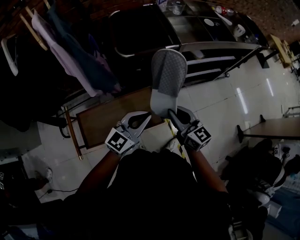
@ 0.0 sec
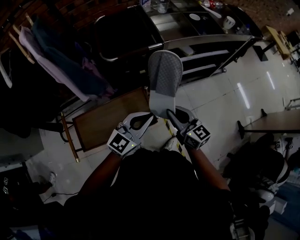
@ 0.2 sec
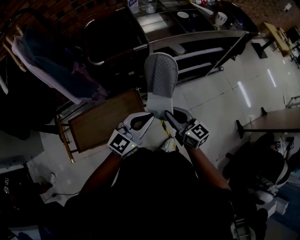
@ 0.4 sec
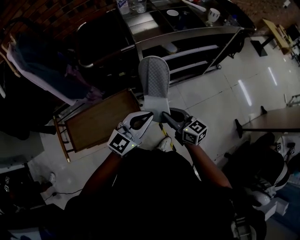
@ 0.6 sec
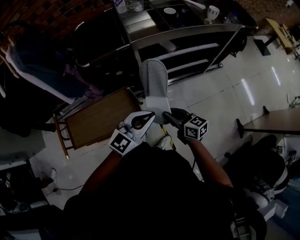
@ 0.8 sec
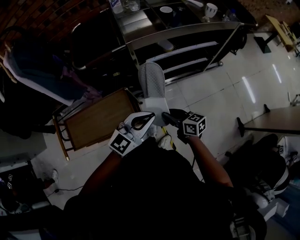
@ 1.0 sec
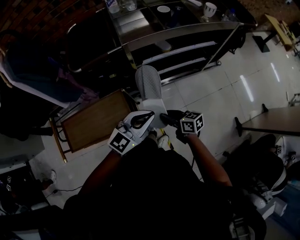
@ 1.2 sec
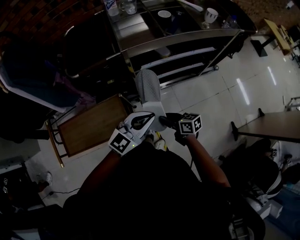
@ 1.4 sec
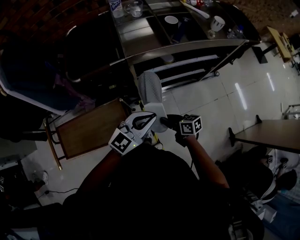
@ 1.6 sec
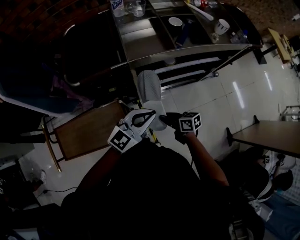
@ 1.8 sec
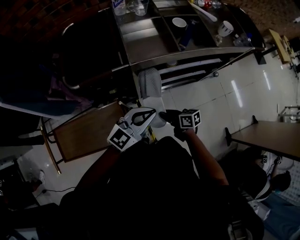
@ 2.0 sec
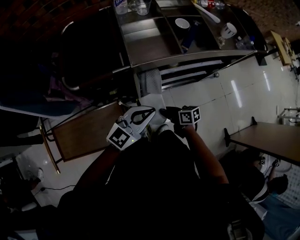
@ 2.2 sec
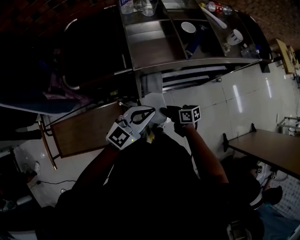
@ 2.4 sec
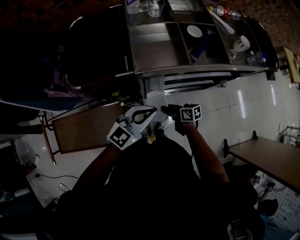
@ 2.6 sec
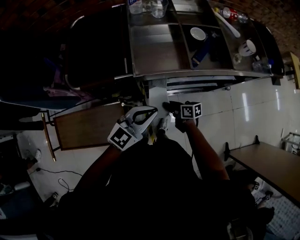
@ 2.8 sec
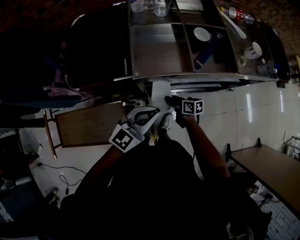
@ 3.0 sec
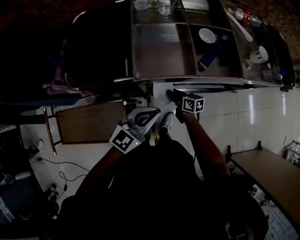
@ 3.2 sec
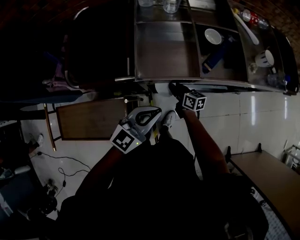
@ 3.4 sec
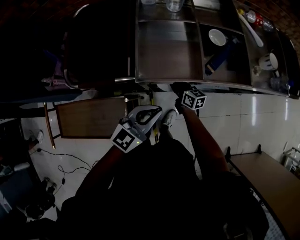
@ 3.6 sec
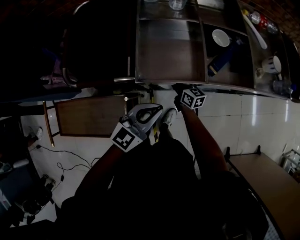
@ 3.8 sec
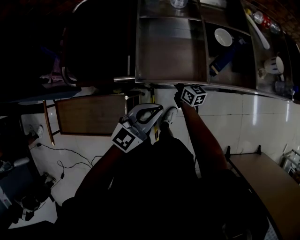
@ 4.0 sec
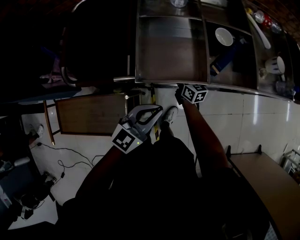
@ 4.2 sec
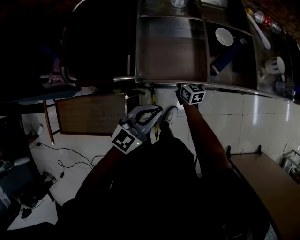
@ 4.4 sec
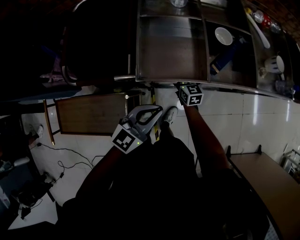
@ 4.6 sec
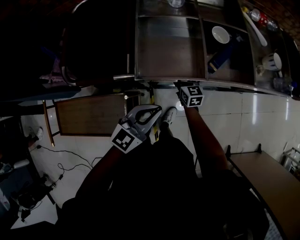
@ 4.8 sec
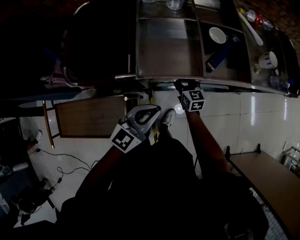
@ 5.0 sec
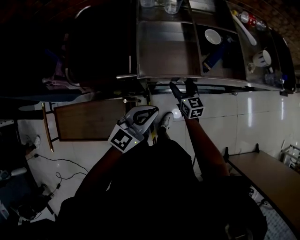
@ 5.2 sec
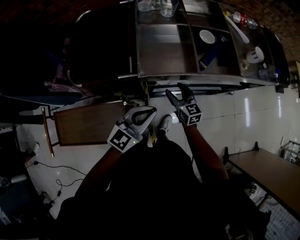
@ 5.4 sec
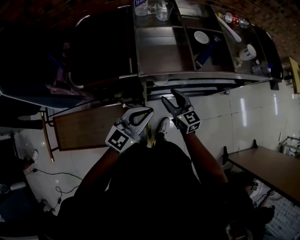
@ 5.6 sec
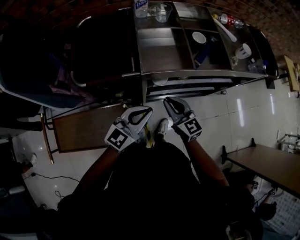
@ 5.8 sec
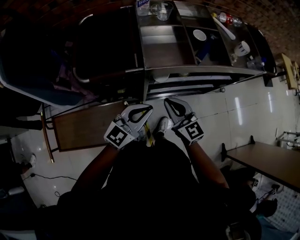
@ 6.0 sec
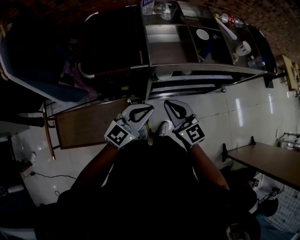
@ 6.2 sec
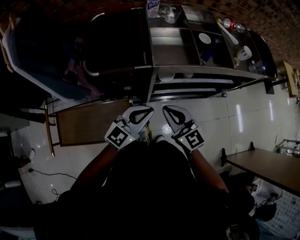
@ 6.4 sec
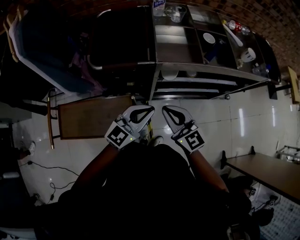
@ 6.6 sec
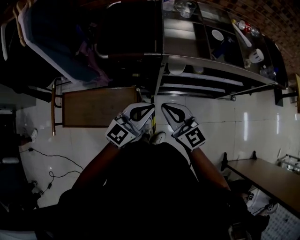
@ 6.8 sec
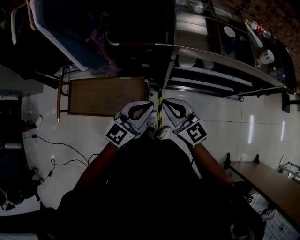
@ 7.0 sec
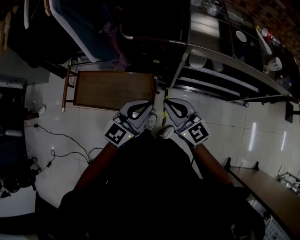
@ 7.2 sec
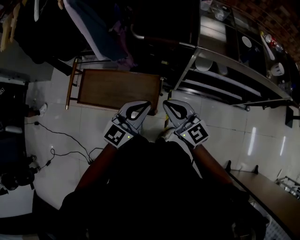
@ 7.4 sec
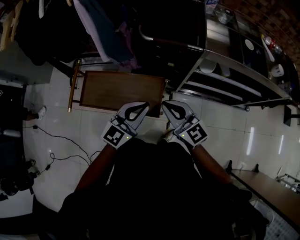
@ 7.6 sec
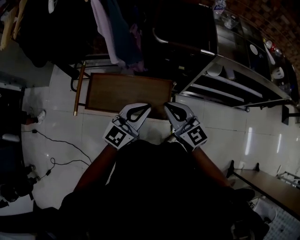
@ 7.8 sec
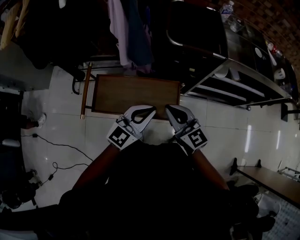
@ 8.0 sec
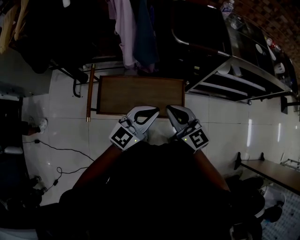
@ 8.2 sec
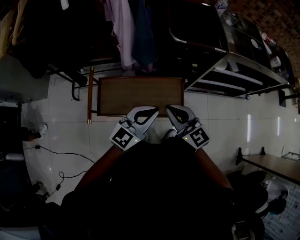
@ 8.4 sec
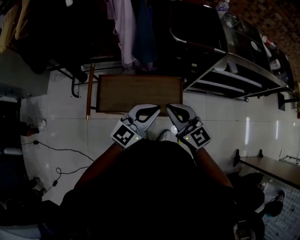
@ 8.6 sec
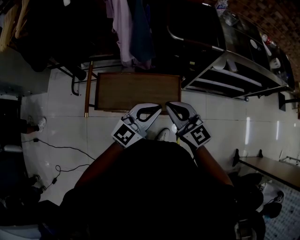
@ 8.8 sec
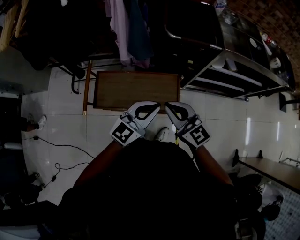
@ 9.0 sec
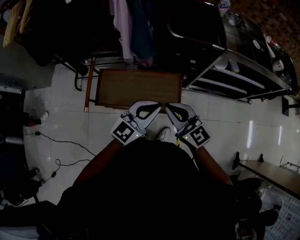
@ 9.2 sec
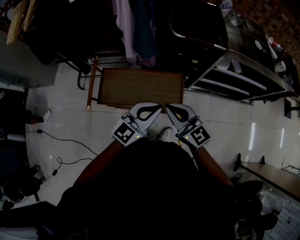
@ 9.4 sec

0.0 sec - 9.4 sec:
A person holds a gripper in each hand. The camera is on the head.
0.0 sec - 1.6 sec: The left gripper shifts approximately 30 cm to the right. The right gripper travels to the right and downward by approximately 30 cm, and swivels about 40 degrees.
1.6 sec - 3.2 sec: The left gripper is displaced forward by some 15 cm. Meanwhile the right gripper goes approximately 25 cm forward.
3.2 sec - 4.8 sec: The right gripper shifts some 10 cm forward, rotates approximately 40 degrees, and opens its fingers.
4.8 sec - 6.2 sec: The right gripper goes about 35 cm backward and upward, rotates roughly 20 degrees, and closes its fingers, while the left gripper is displaced backward, to the left and upward by about 15 cm.
6.2 sec - 7.8 sec: The grippers both shift to the left and backward by approximately 30 cm. The left gripper swivels about 20 degrees.
7.8 sec - 9.4 sec: The left gripper travels backward by some 5 cm. Meanwhile the right gripper goes about 10 cm to the left and backward.

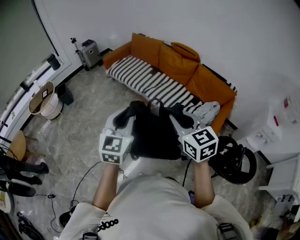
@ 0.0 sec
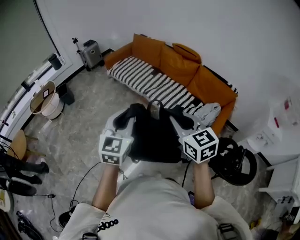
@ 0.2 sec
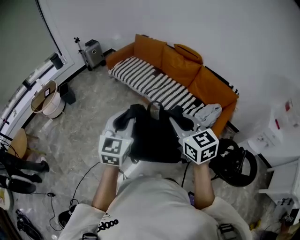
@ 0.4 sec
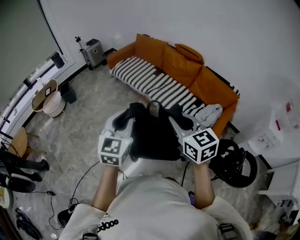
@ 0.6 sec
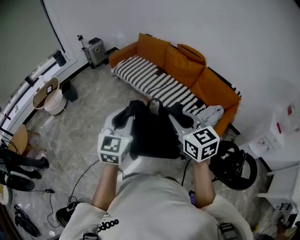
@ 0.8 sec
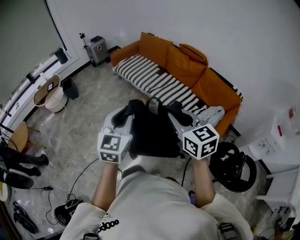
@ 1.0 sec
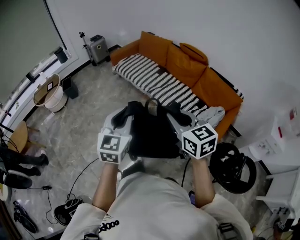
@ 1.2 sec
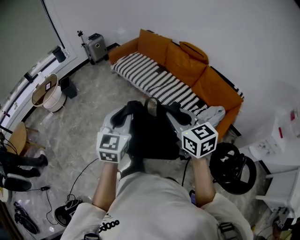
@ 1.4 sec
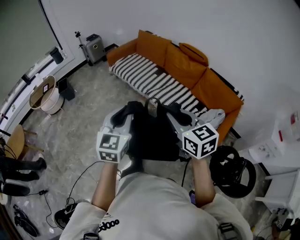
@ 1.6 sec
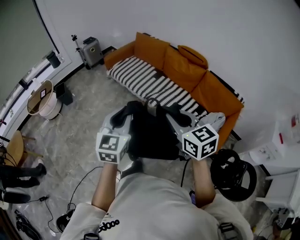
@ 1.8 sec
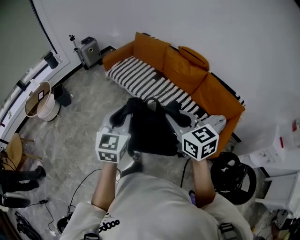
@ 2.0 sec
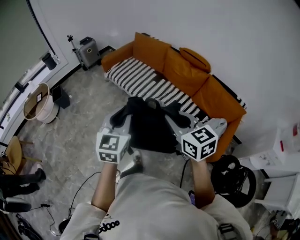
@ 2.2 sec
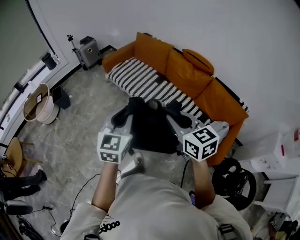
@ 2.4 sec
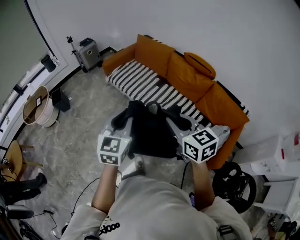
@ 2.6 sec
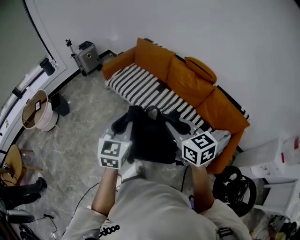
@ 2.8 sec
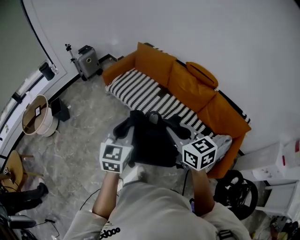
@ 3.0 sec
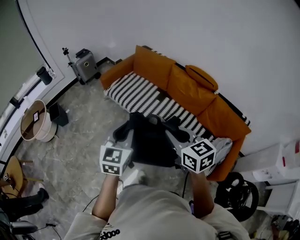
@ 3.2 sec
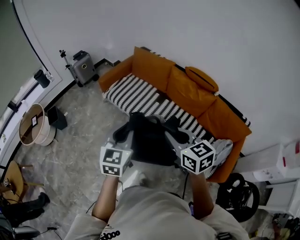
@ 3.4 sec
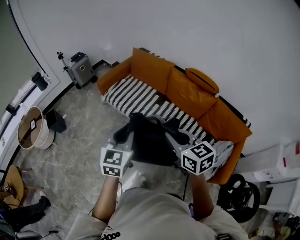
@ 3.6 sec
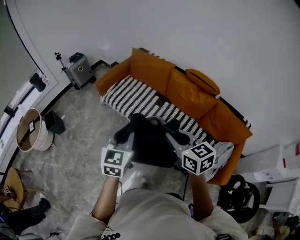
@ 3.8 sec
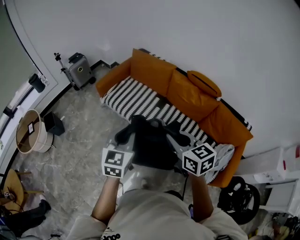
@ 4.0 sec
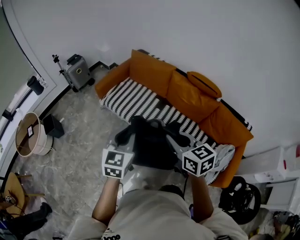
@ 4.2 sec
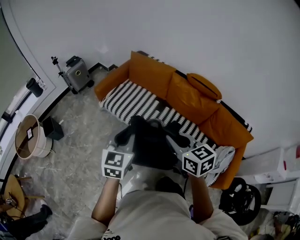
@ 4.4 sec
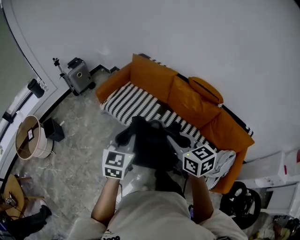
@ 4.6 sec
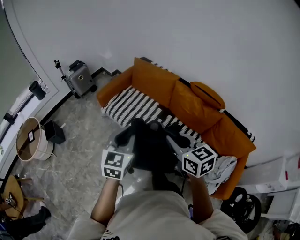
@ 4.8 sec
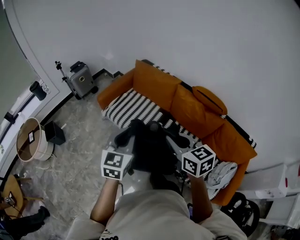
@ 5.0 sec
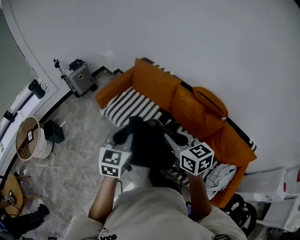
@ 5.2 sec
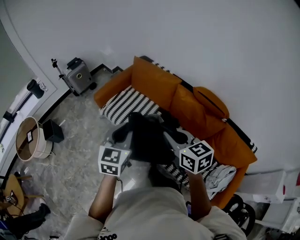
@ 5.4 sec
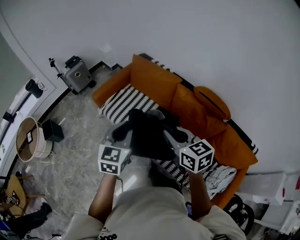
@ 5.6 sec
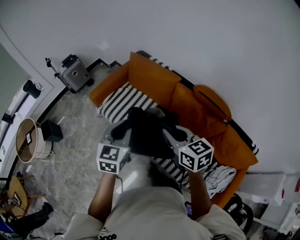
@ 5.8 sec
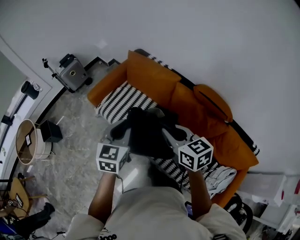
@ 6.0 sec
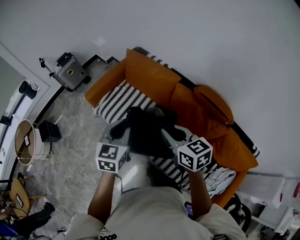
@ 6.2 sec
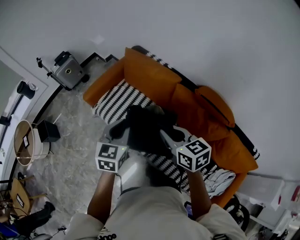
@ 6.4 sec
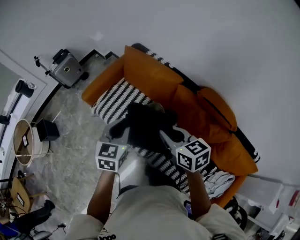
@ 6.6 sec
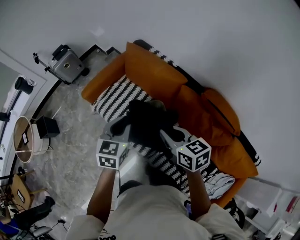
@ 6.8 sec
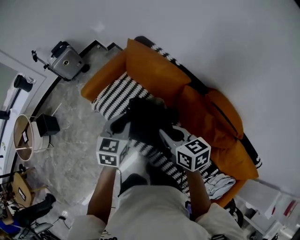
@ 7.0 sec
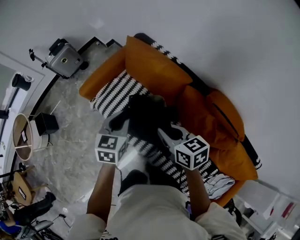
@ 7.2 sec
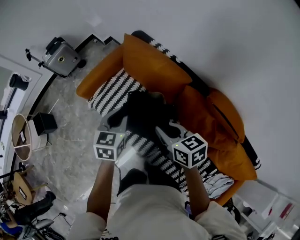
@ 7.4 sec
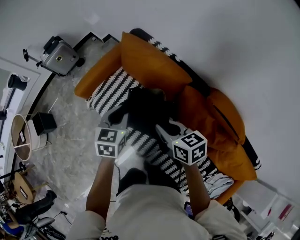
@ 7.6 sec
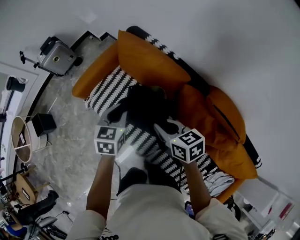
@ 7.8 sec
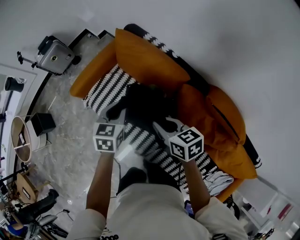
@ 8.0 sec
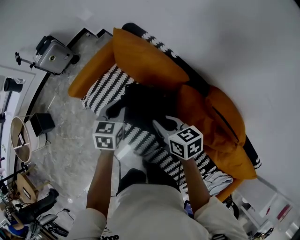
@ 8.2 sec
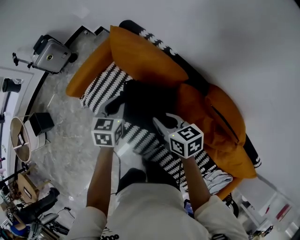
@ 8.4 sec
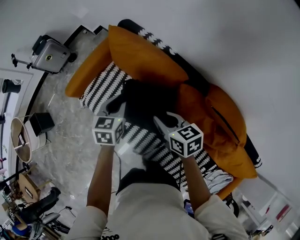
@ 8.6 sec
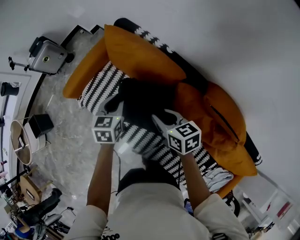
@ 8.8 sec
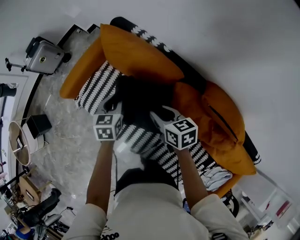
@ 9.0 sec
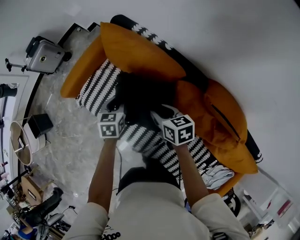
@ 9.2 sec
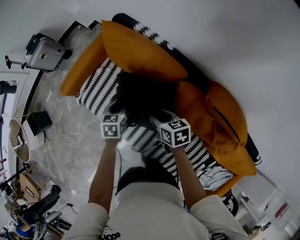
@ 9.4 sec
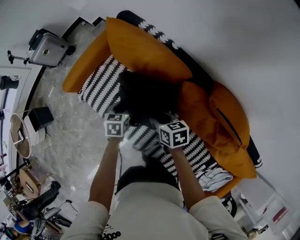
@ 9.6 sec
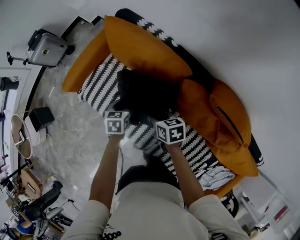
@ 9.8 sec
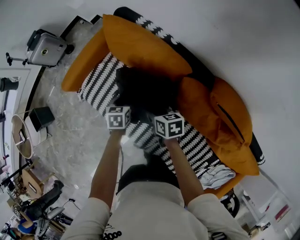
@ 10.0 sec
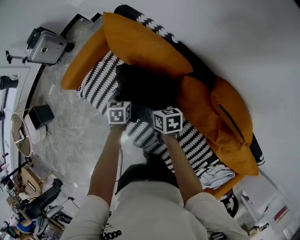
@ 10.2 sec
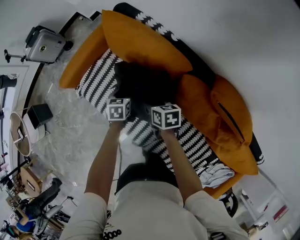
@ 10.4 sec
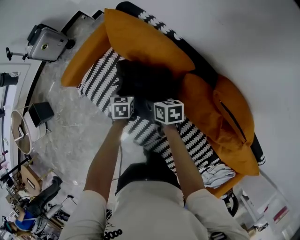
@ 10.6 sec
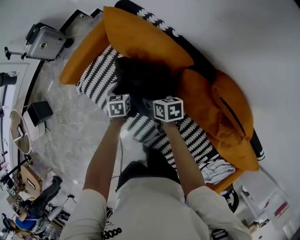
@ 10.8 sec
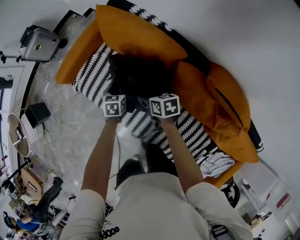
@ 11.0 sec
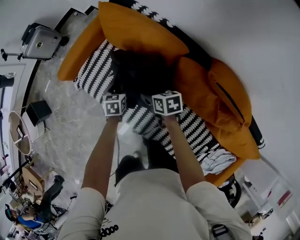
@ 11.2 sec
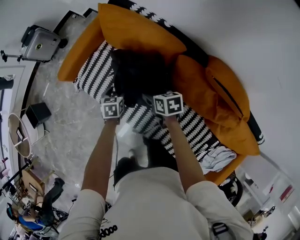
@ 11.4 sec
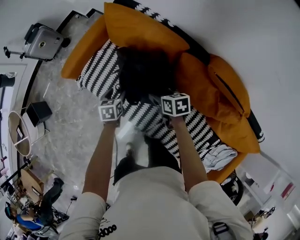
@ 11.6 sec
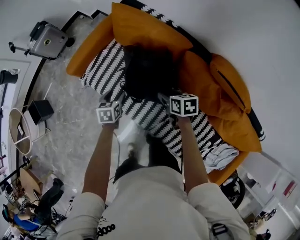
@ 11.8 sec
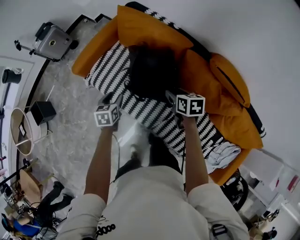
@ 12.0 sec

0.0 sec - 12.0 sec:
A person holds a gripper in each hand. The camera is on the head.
0.0 sec - 1.6 sec: Both grippers move forward, about 10 cm.
1.6 sec - 3.0 sec: Both grippers move forward, roughly 30 cm.
3.0 sec - 4.4 sec: Both grippers move forward, some 15 cm.
4.4 sec - 6.0 sec: Both grippers travel together forward, approximately 25 cm.
6.0 sec - 7.6 sec: Both grippers travel together forward and downward, roughly 25 cm.
7.6 sec - 9.0 sec: The right gripper travels downward, to the right and forward by some 15 cm, while the left gripper heads downward, forward and to the right, covering about 15 cm.
9.0 sec - 10.4 sec: The grippers both shift downward by about 15 cm.
10.4 sec - 12.0 sec: The left gripper is displaced to the left, backward and upward by roughly 25 cm, and opens up, while the right gripper moves backward and upward, roughly 15 cm.

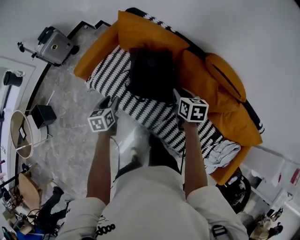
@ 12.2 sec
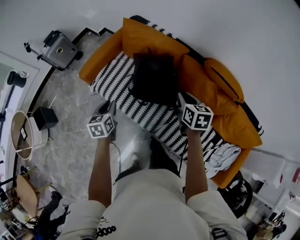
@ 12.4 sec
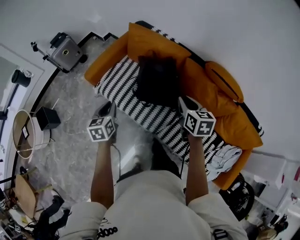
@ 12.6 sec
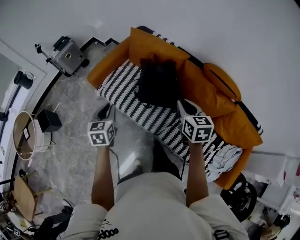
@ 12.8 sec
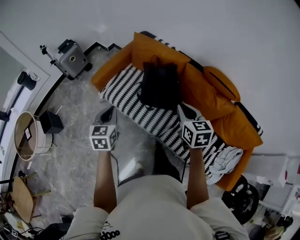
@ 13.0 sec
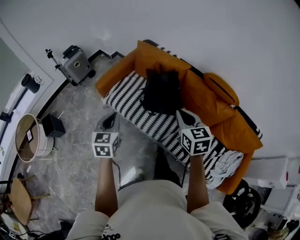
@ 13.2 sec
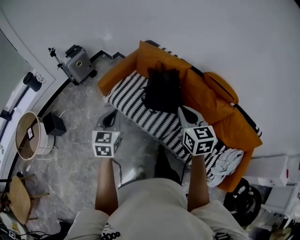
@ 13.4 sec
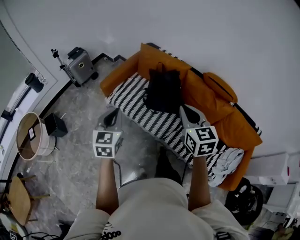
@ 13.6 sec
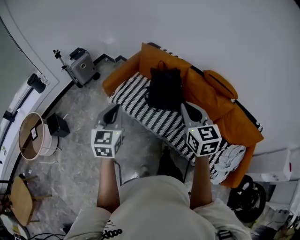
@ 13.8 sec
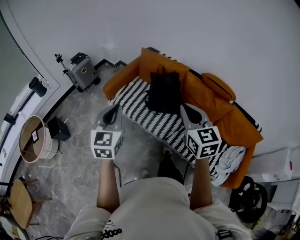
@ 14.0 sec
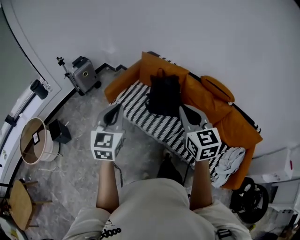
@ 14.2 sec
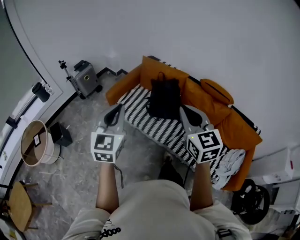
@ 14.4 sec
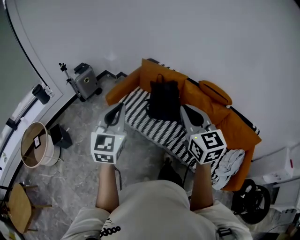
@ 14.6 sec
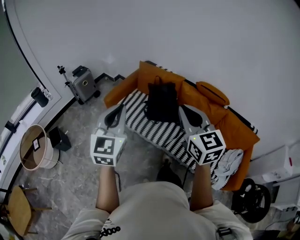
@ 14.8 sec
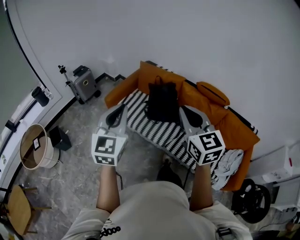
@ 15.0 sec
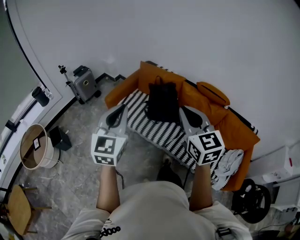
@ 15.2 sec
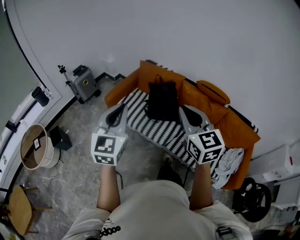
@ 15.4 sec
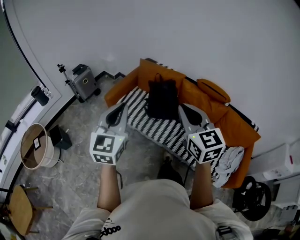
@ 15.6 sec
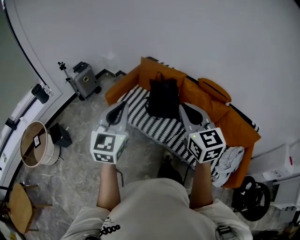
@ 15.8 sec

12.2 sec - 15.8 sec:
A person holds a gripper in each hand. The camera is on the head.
12.2 sec - 14.0 sec: The right gripper shifts roughly 50 cm upward, backward and to the left, changes its angle by about 40 degrees, and closes up. The left gripper shifts roughly 40 cm upward and backward, rotates roughly 40 degrees, and closes.
14.0 sec - 15.8 sec: The two grippers go about 10 cm upward and backward.
